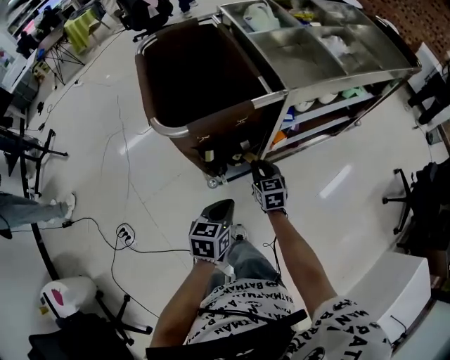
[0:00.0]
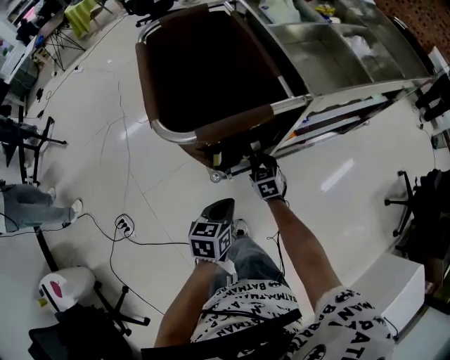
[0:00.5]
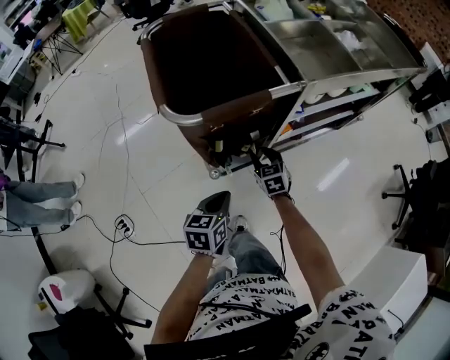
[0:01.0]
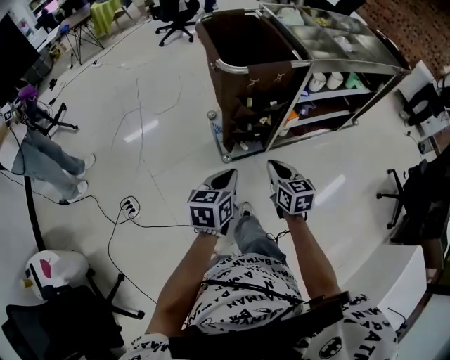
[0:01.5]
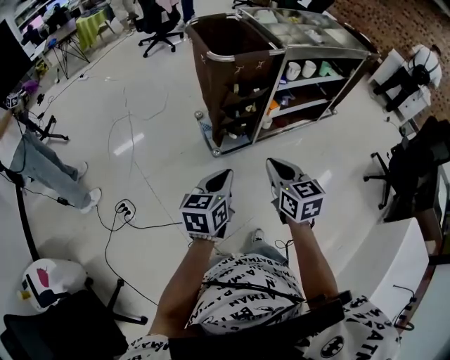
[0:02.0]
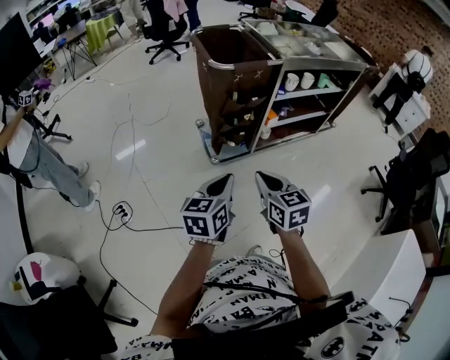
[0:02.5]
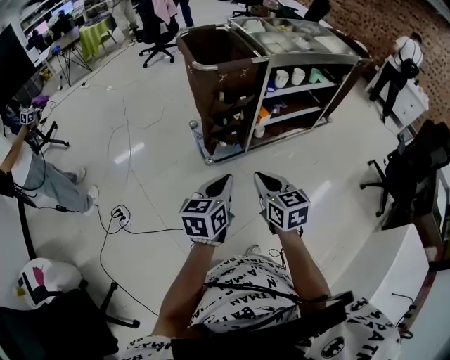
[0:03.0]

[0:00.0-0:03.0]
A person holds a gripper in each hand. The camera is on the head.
0:00.0 to 0:01.5: The left gripper is displaced backward, to the left and upward by approximately 20 cm. The right gripper shifts some 25 cm backward and upward, and opens and closes again.
0:01.5 to 0:03.0: The left gripper shifts roughly 15 cm backward, upward and to the right; the right gripper goes roughly 20 cm backward and upward.

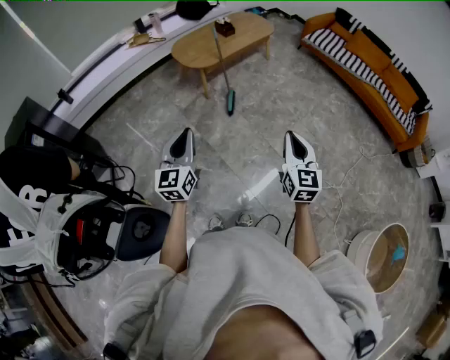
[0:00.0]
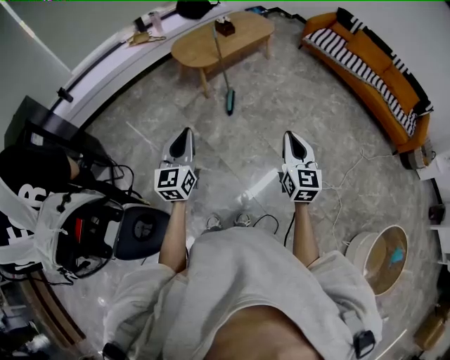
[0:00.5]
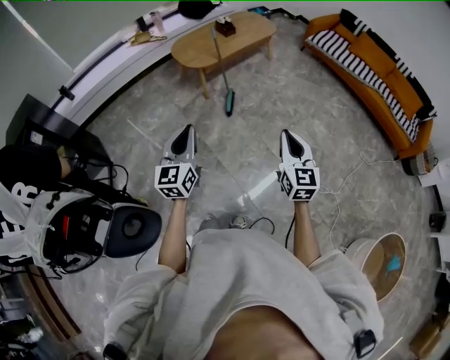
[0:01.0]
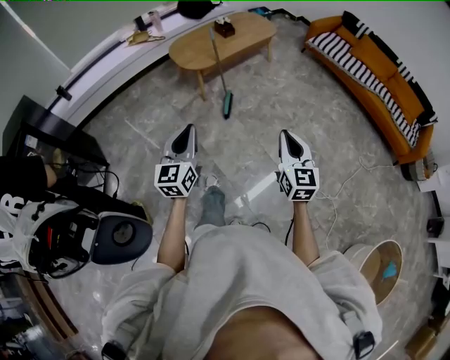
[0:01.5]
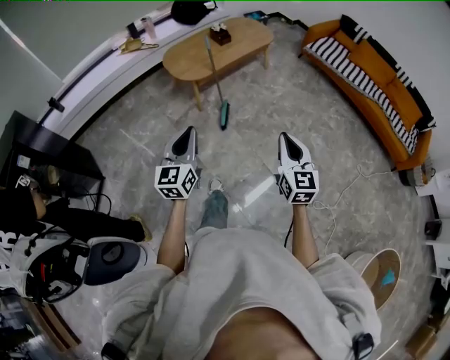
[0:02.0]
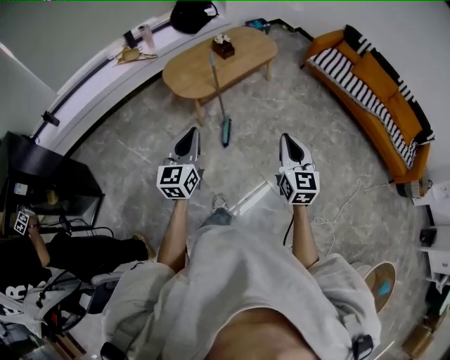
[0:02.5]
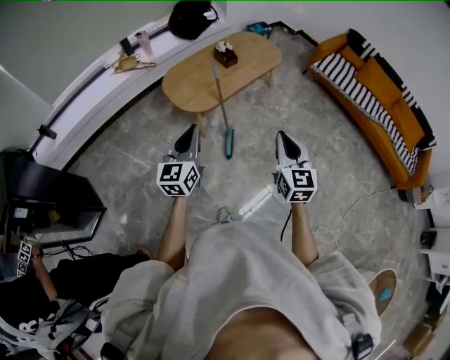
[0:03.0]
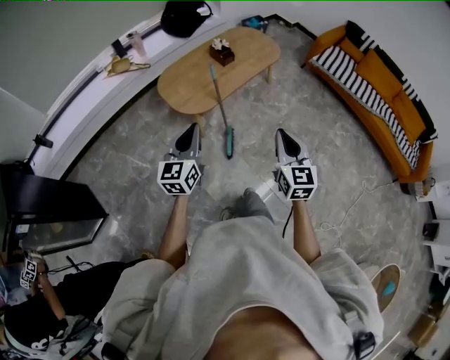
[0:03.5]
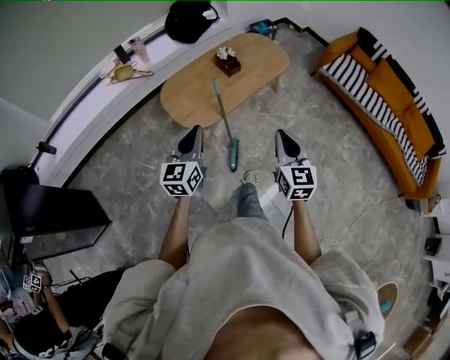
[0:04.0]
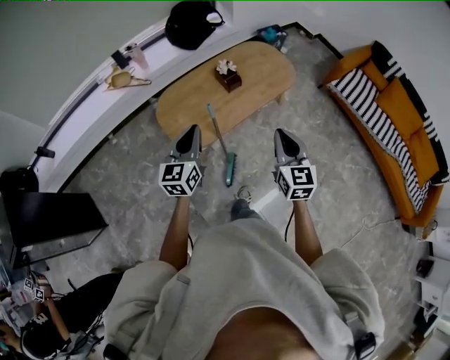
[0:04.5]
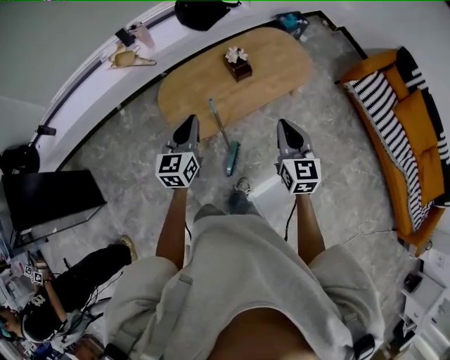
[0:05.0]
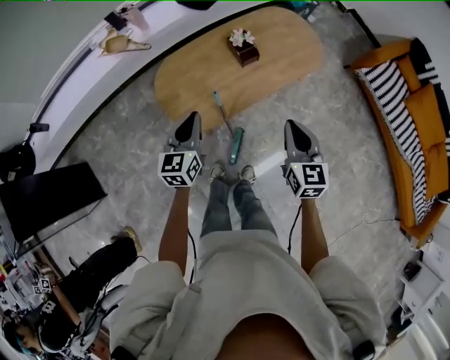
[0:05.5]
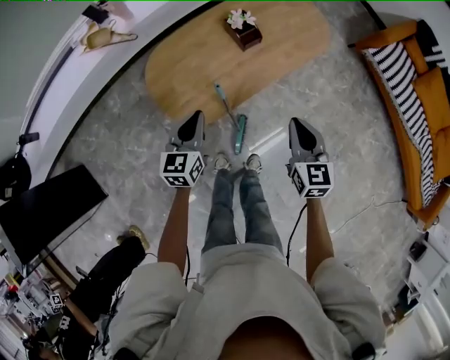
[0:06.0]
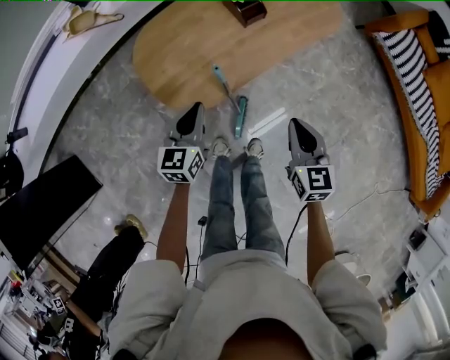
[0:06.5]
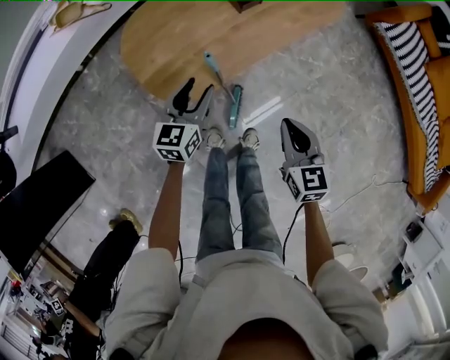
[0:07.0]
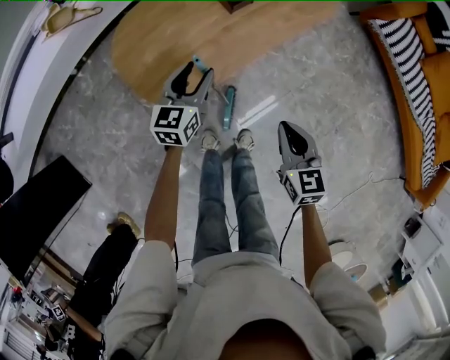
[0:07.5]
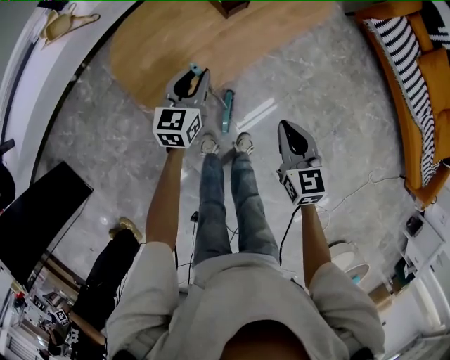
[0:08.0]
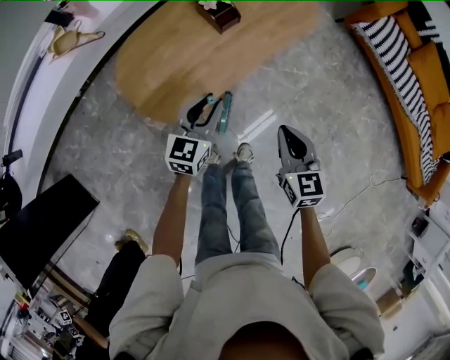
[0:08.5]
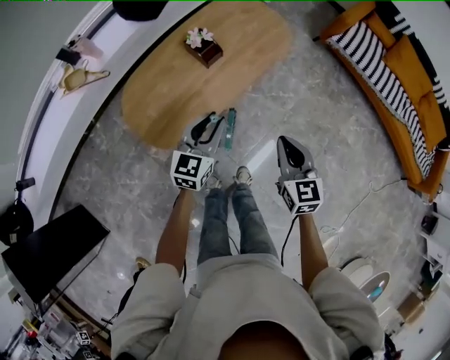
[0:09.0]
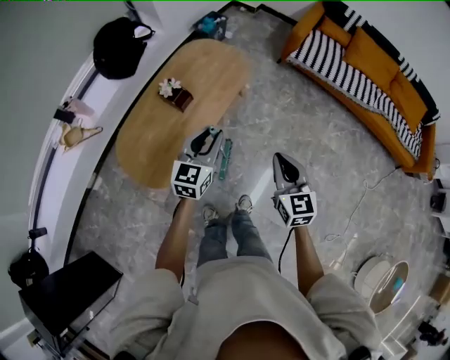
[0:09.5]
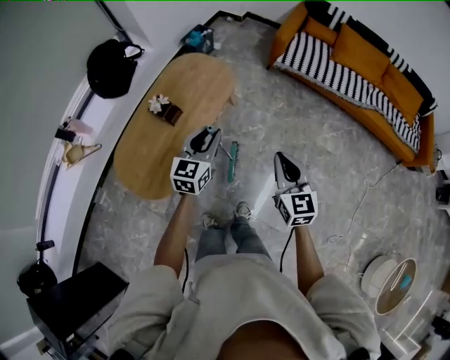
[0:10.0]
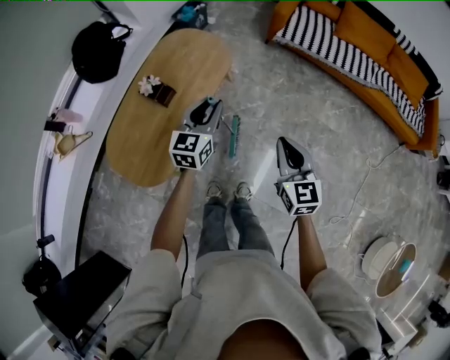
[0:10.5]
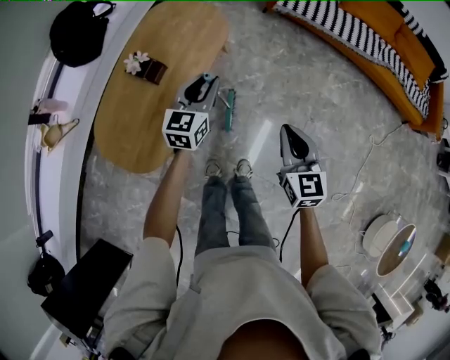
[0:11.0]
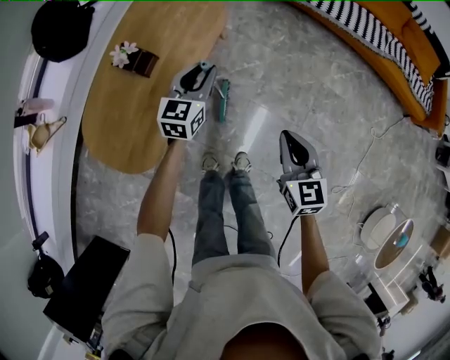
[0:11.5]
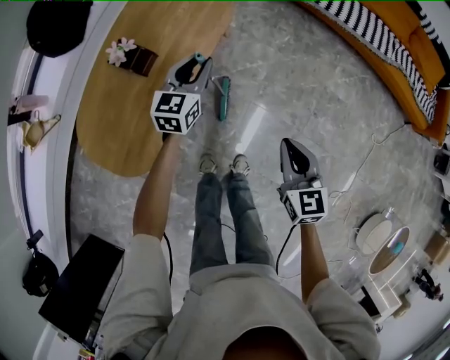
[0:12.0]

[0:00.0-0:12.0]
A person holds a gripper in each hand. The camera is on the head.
0:00.0 to 0:02.0: The right gripper travels forward by about 15 cm; the left gripper shifts roughly 20 cm forward and to the right.
0:02.0 to 0:04.0: The two grippers travel together, forward, roughly 40 cm.
0:04.0 to 0:06.0: The grippers both shift forward and downward by approximately 35 cm.
0:06.0 to 0:08.0: The right gripper travels downward by about 10 cm; the left gripper heads downward, forward and to the right, covering roughly 15 cm, and opens.
0:08.0 to 0:10.0: The right gripper heads upward and to the right, covering some 35 cm, and swivels some 30 degrees. The left gripper goes roughly 40 cm to the right and upward, and swivels about 30 degrees.
0:10.0 to 0:12.0: The right gripper shifts roughly 20 cm downward. Meanwhile the left gripper travels downward and forward by about 25 cm.

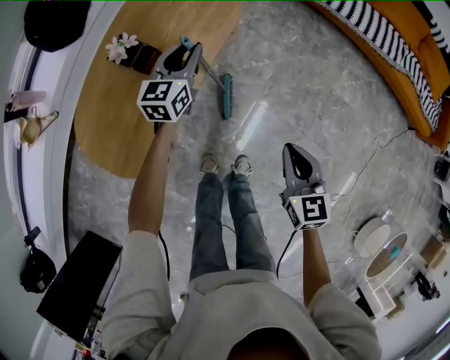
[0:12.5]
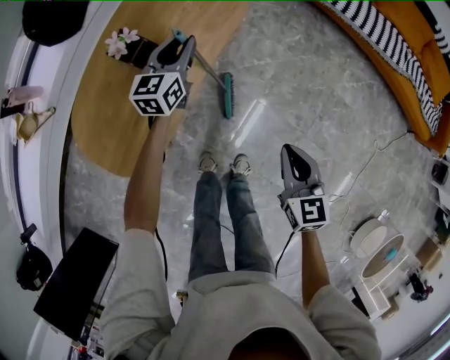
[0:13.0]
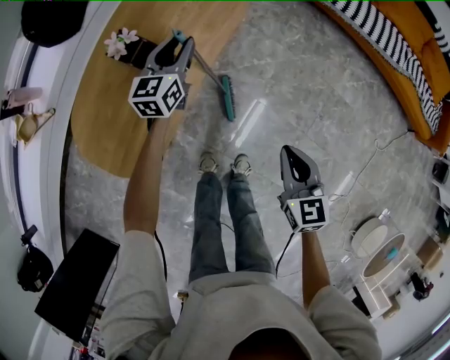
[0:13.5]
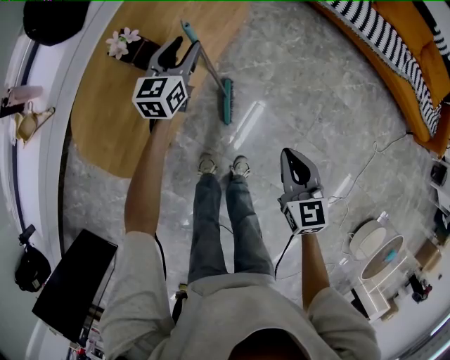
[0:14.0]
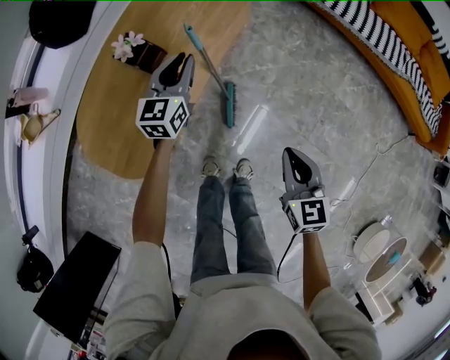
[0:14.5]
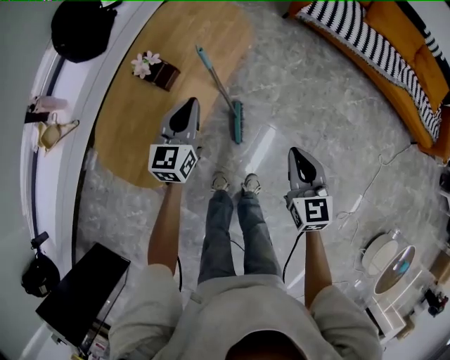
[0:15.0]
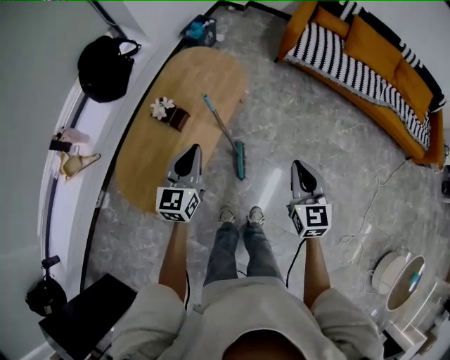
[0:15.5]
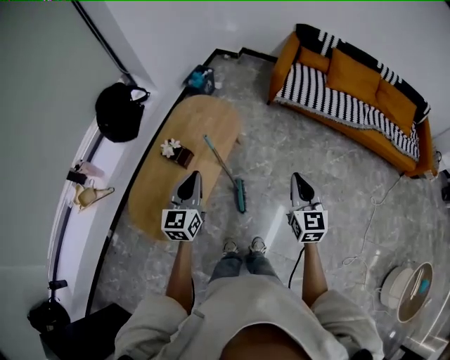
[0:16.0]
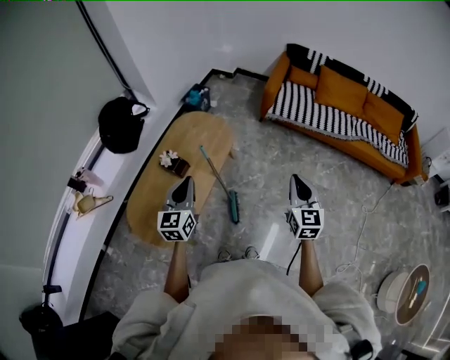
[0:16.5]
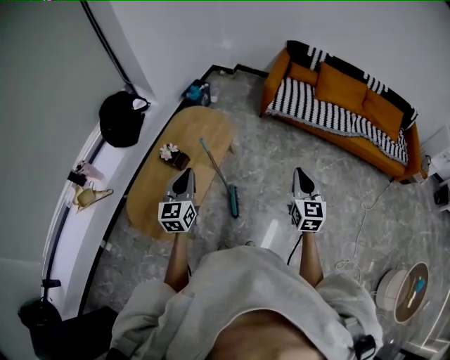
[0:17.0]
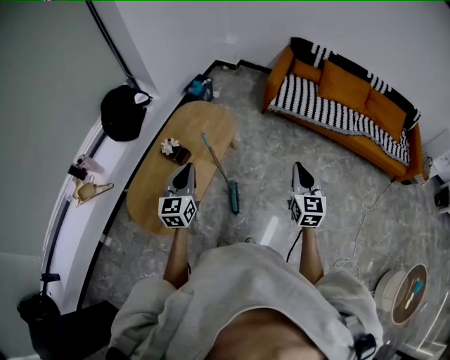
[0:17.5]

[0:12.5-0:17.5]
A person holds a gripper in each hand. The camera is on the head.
0:12.5 to 0:15.0: The left gripper moves backward and upward, roughly 15 cm, and closes its fingers.
0:15.0 to 0:17.5: The left gripper travels upward and backward by approximately 30 cm, while the right gripper heads upward and to the right, covering some 25 cm, and turns by some 20 degrees.

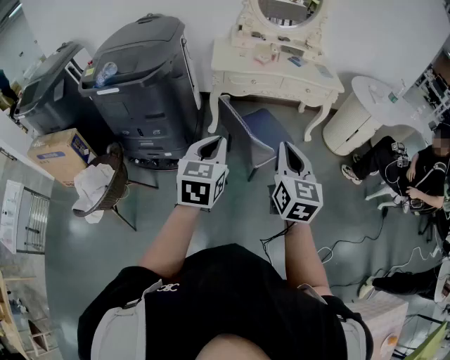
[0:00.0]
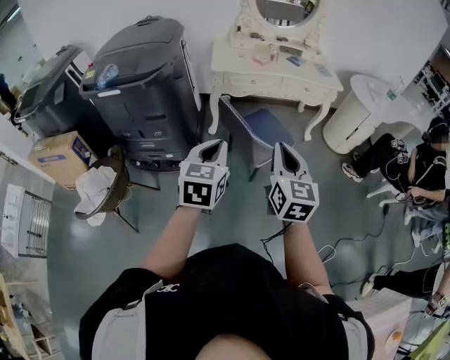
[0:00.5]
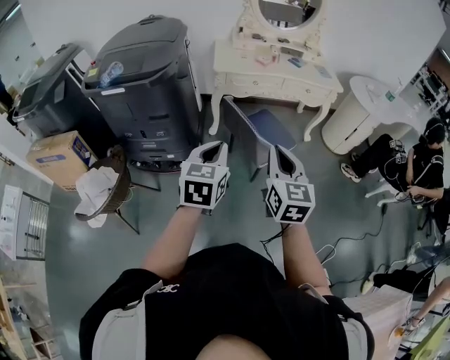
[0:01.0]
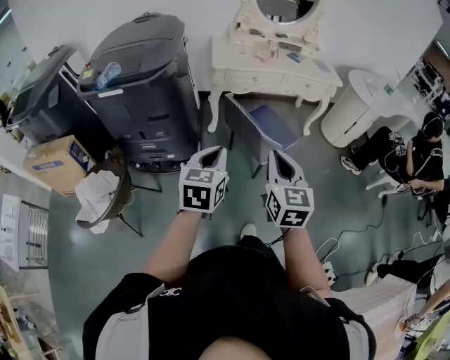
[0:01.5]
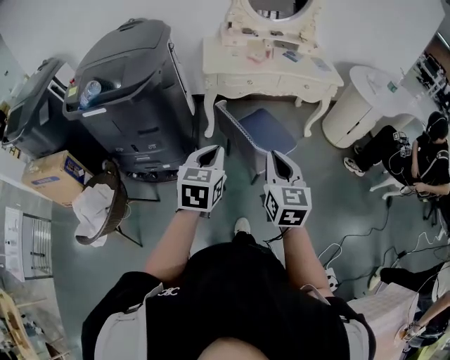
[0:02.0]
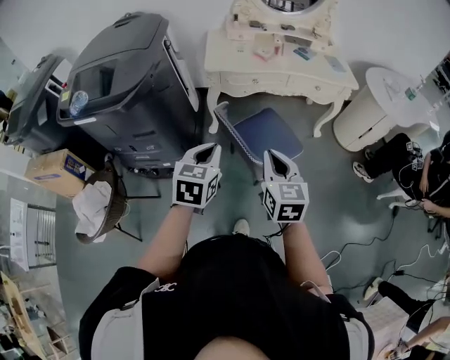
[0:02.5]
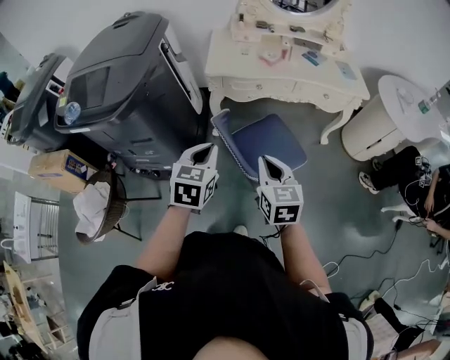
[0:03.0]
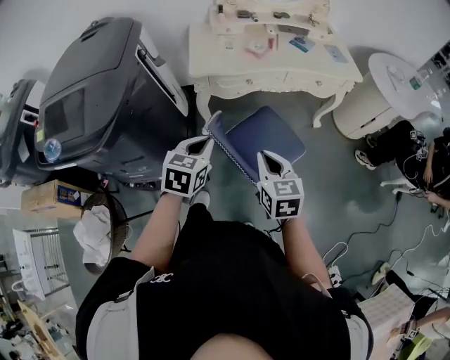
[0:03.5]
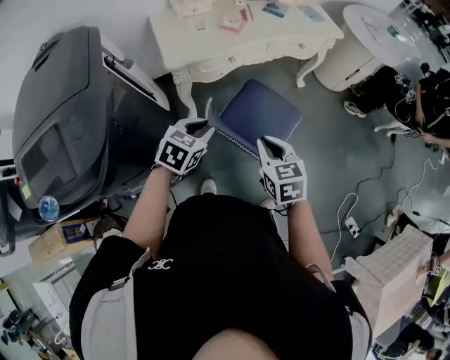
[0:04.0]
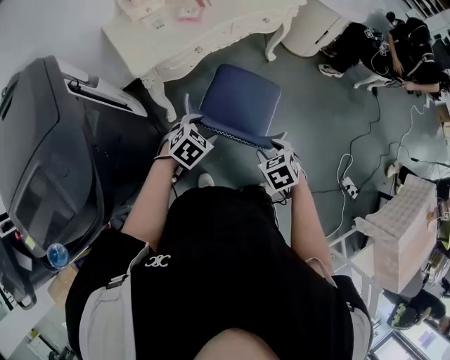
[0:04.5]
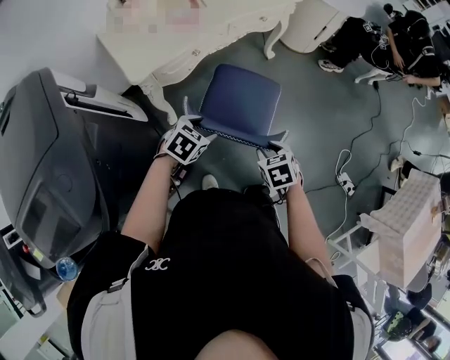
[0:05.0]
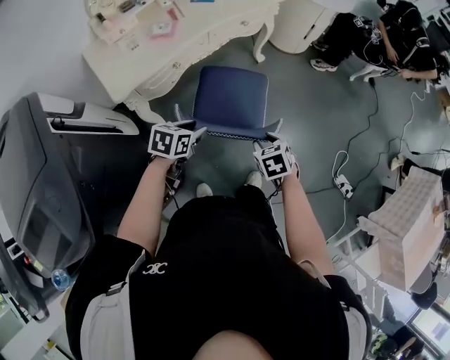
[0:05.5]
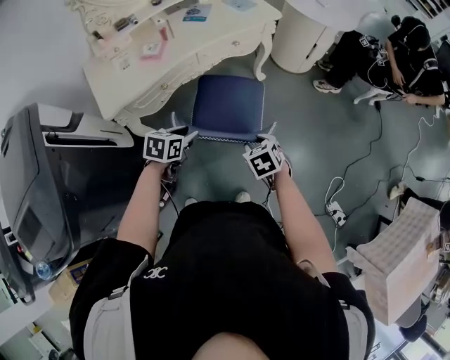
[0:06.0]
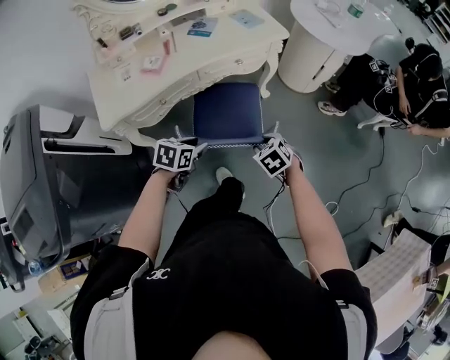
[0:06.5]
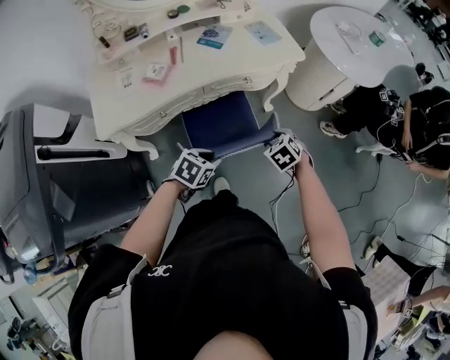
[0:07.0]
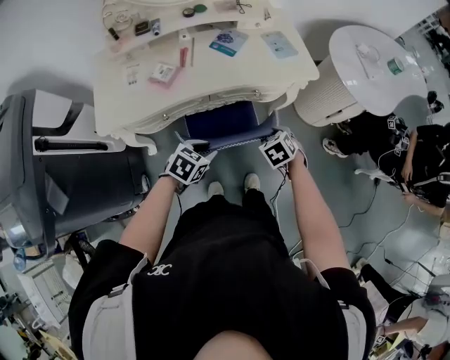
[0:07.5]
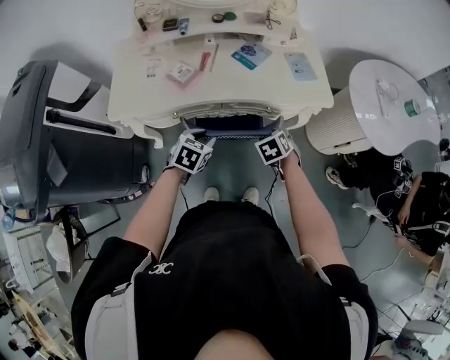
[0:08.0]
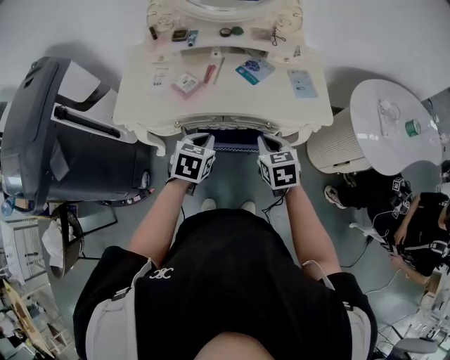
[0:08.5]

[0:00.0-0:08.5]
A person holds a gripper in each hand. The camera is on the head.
0:00.0 to 0:02.0: The left gripper is displaced forward and downward by approximately 10 cm, while the right gripper heads downward, forward and to the left, covering approximately 10 cm.
0:02.0 to 0:04.0: The right gripper shifts by roughly 30 cm, and rotates about 20 degrees. Meanwhile the left gripper changes place by approximately 35 cm, and rotates some 40 degrees.
0:04.0 to 0:06.5: The grippers both shift forward, to the right and downward by about 30 cm. The left gripper opens; the right gripper rotates about 30 degrees, and opens its fingers.
0:06.5 to 0:08.5: The left gripper shifts by some 20 cm, changes its angle by some 40 degrees, and closes its fingers. The right gripper shifts by some 30 cm, changes its angle by some 30 degrees, and closes up.
